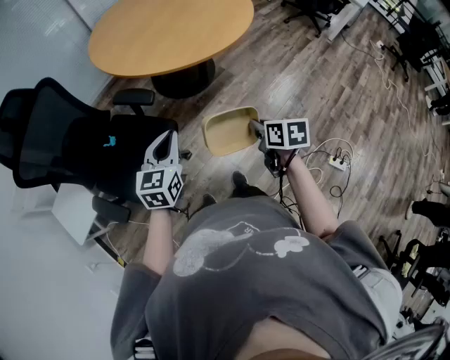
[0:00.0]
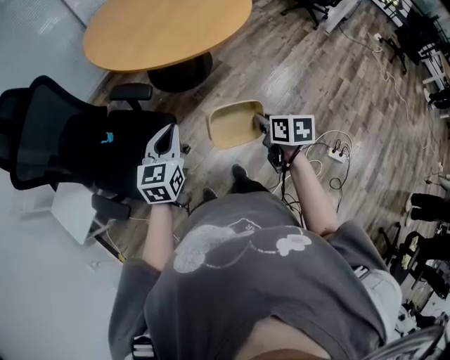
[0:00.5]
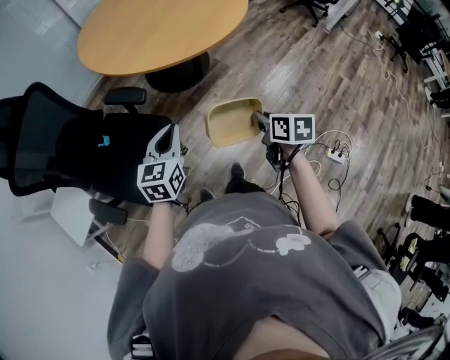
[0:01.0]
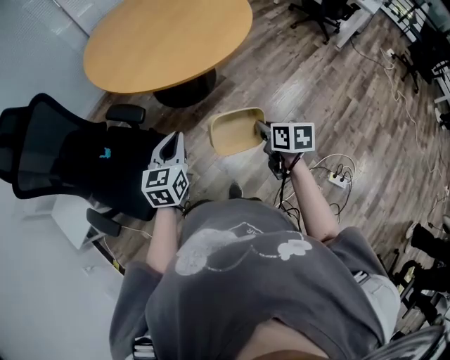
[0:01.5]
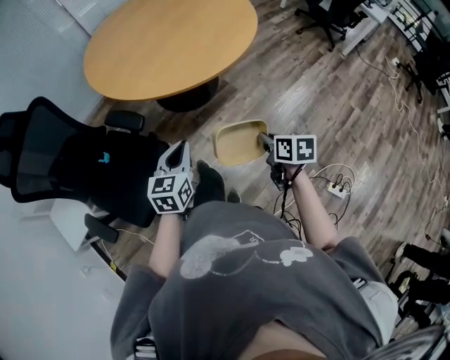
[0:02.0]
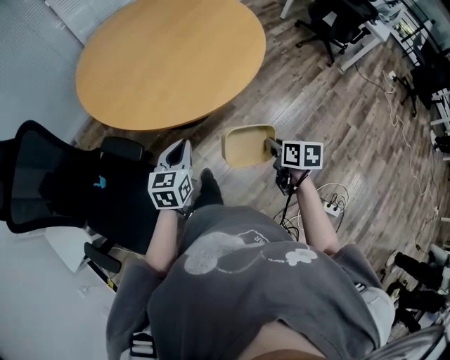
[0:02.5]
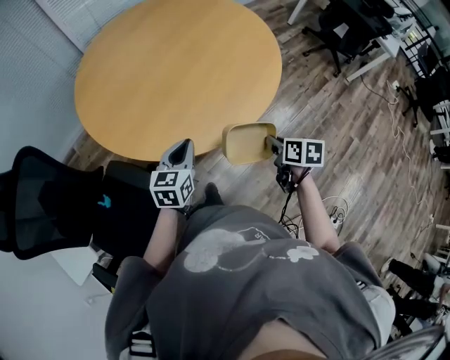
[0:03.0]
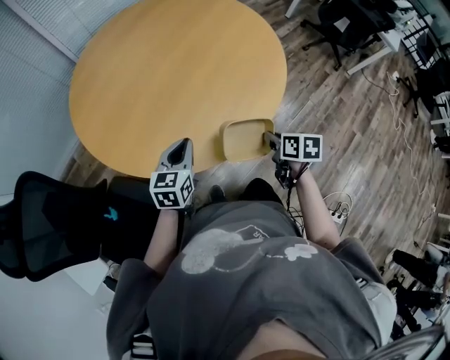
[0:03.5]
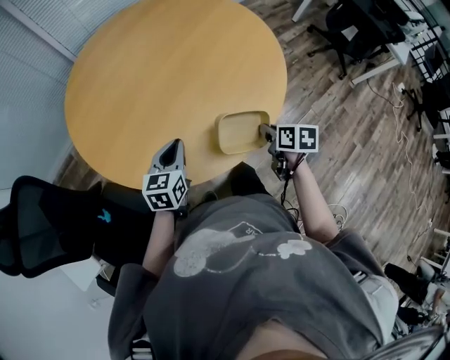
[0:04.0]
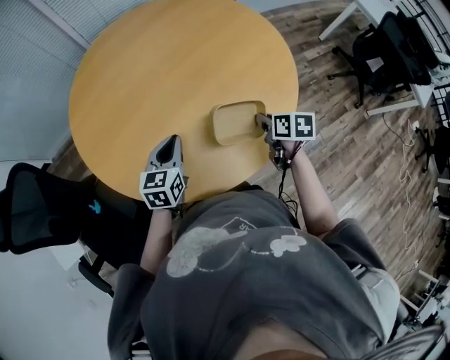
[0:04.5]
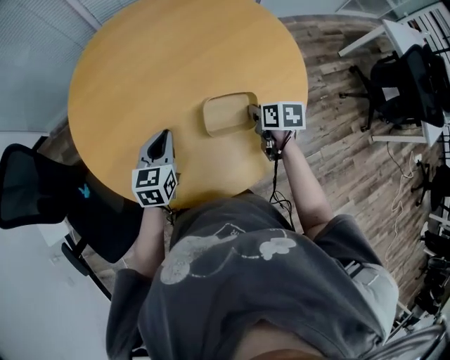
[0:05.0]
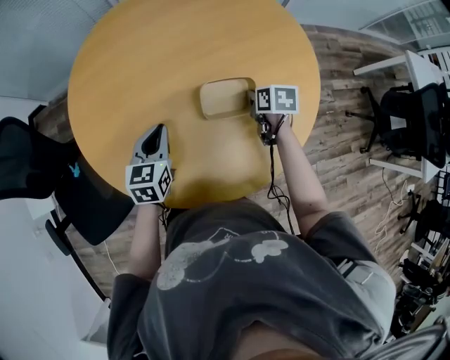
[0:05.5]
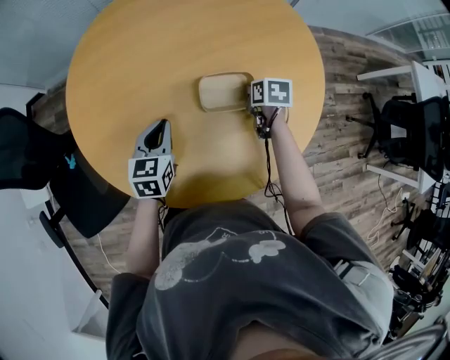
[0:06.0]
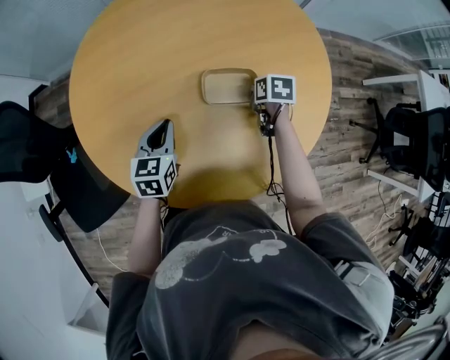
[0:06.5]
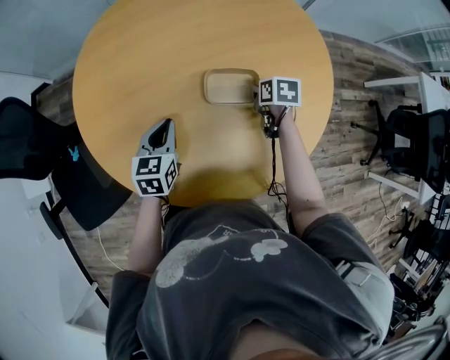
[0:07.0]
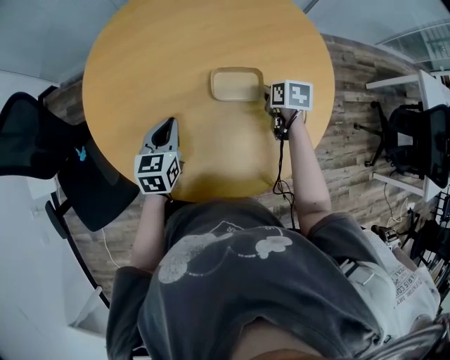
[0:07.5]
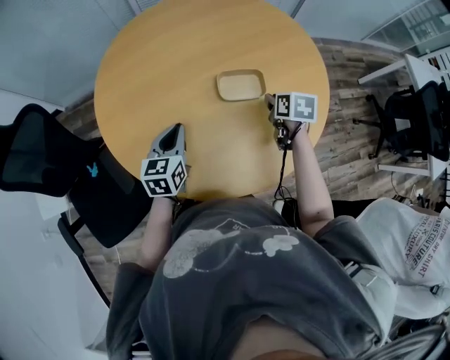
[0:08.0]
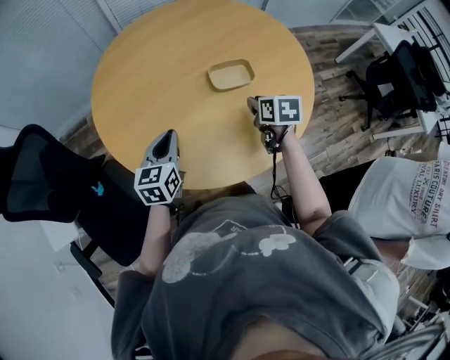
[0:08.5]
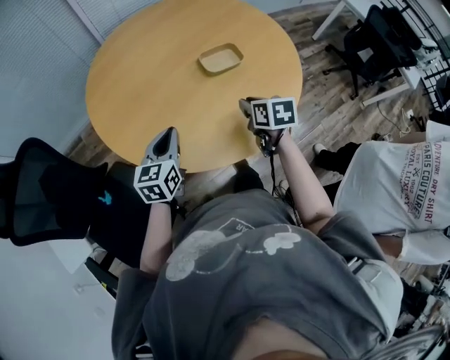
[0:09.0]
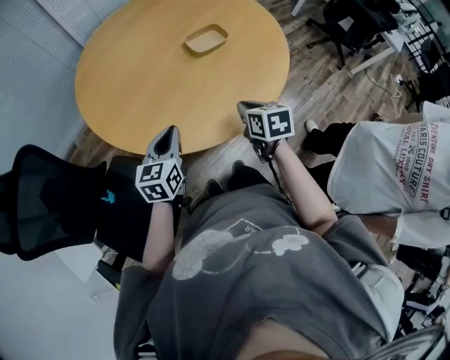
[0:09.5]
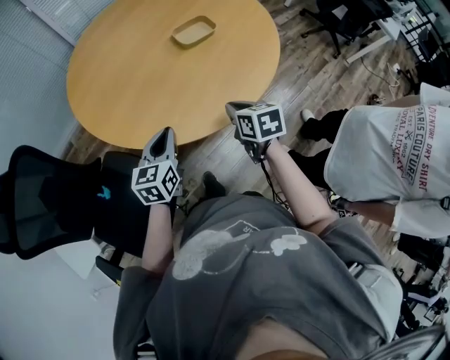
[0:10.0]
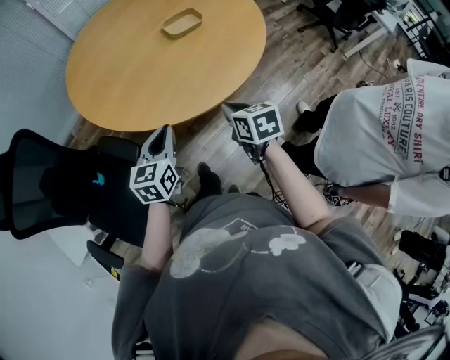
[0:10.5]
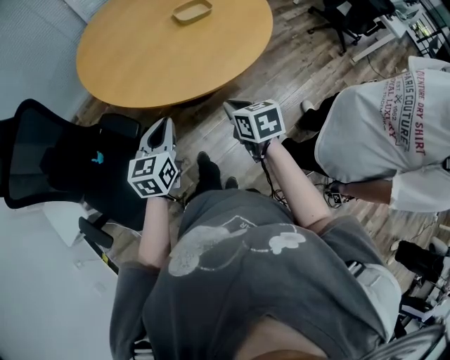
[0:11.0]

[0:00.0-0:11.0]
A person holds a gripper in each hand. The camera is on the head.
0:00.0 to 0:02.0: The two grippers go some 20 cm to the right and forward.
0:02.0 to 0:03.5: Both grippers travel together forward, some 40 cm.
0:03.5 to 0:05.5: The right gripper shifts by some 40 cm, and turns by approximately 40 degrees. Meanwhile the left gripper changes place by approximately 25 cm, and swivels about 40 degrees.
0:05.5 to 0:07.5: The right gripper opens.
0:07.5 to 0:09.0: The right gripper is displaced backward and to the left by roughly 30 cm; the left gripper heads backward, to the left and upward, covering approximately 20 cm, and rotates some 20 degrees.
0:09.0 to 0:11.0: Both grippers move backward, some 30 cm.

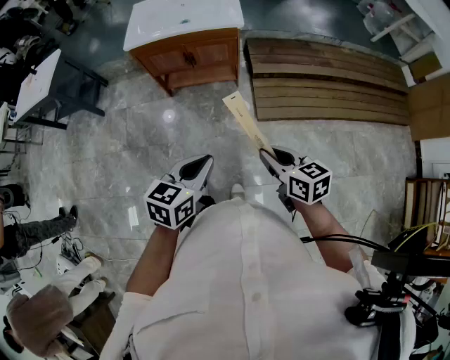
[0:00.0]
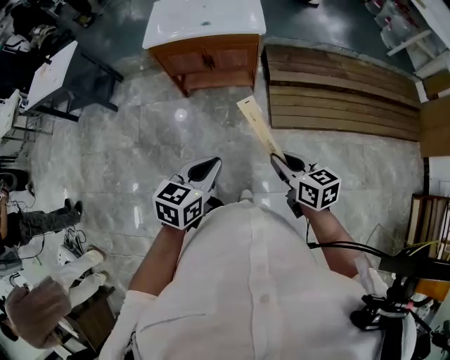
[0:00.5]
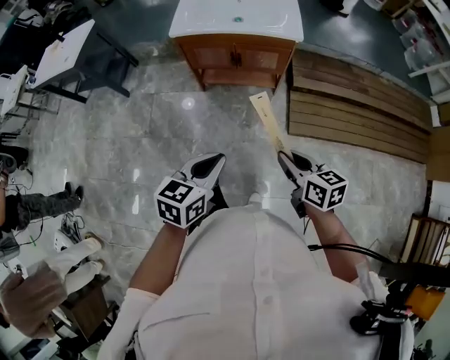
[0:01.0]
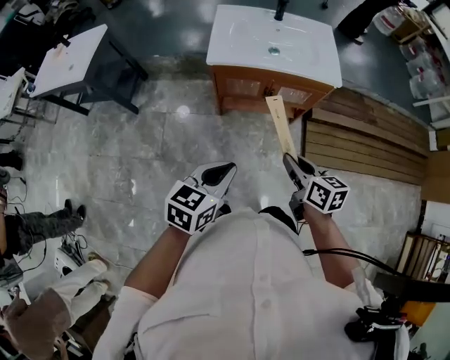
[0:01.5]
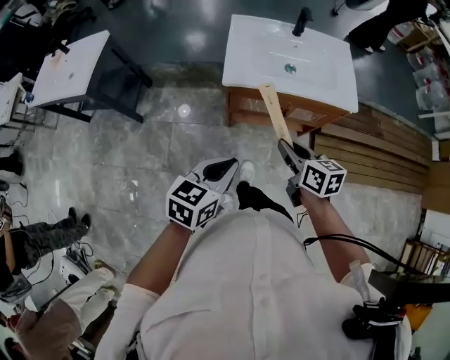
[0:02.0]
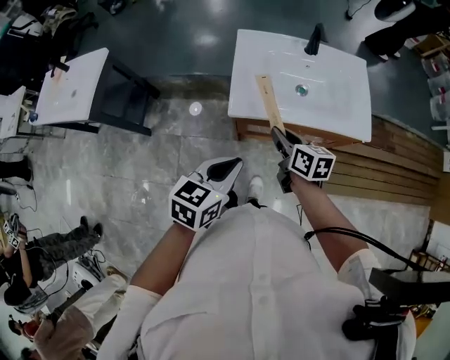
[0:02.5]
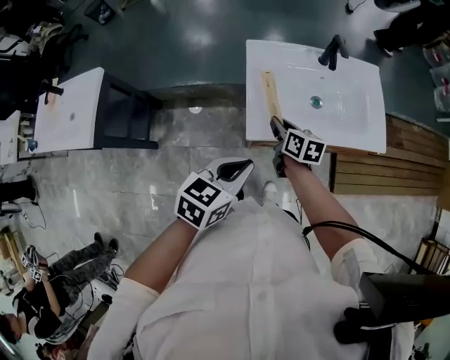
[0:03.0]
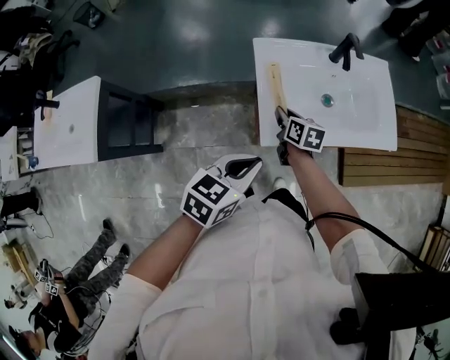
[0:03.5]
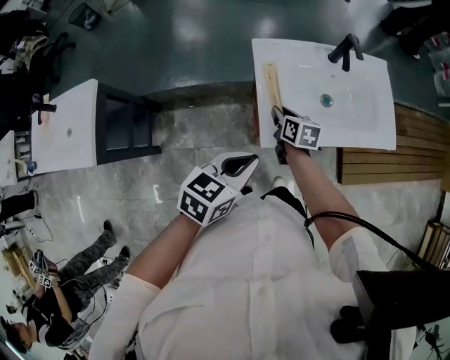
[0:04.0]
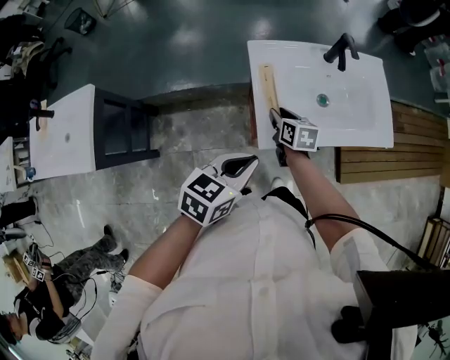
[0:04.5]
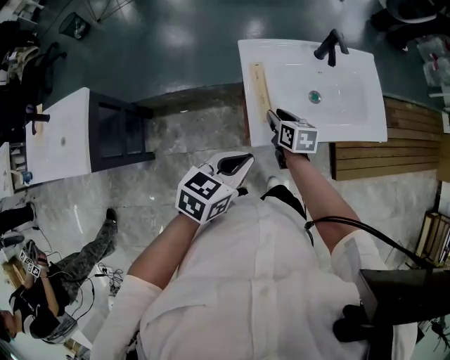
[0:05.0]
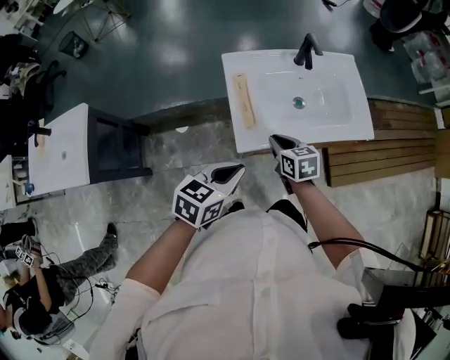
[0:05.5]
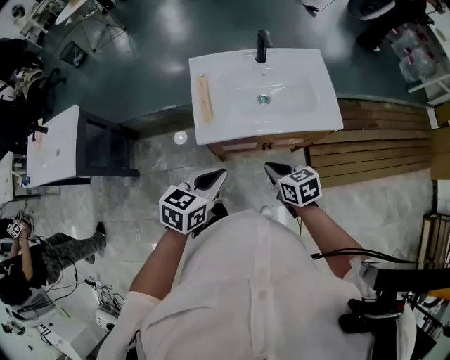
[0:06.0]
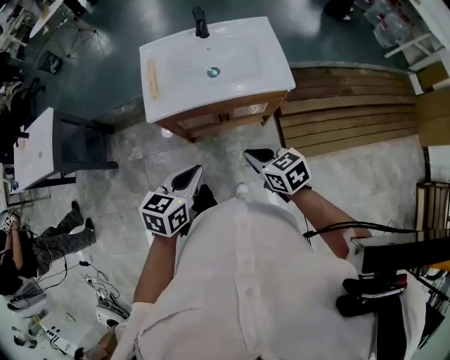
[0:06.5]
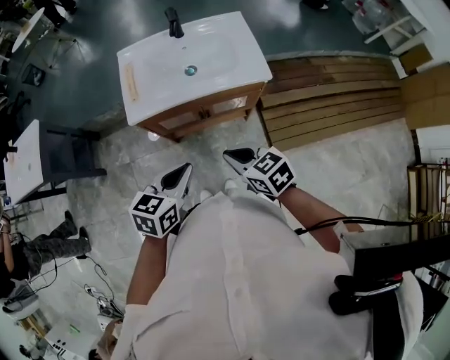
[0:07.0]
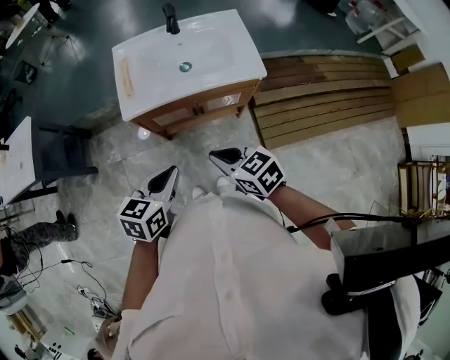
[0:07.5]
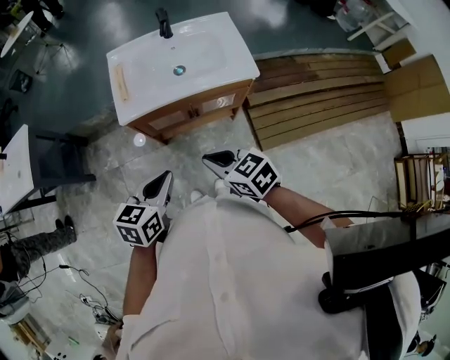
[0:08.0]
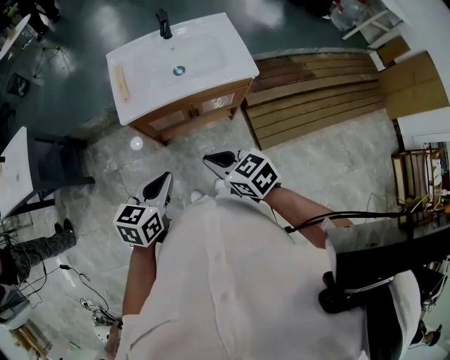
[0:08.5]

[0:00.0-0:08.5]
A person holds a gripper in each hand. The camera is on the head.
0:00.0 to 0:02.0: The pair of grippers is taken forward and to the left, roughly 50 cm.
0:02.0 to 0:04.0: The right gripper is displaced forward, to the left and downward by approximately 40 cm, and swivels roughly 20 degrees. Meanwhile the left gripper shifts some 30 cm forward and to the left.
0:04.0 to 0:06.5: Both grippers move to the right and backward, some 40 cm. The right gripper rotates roughly 30 degrees.
0:06.5 to 0:08.5: The right gripper moves to the left, upward and backward, roughly 10 cm. The left gripper changes place by some 5 cm.

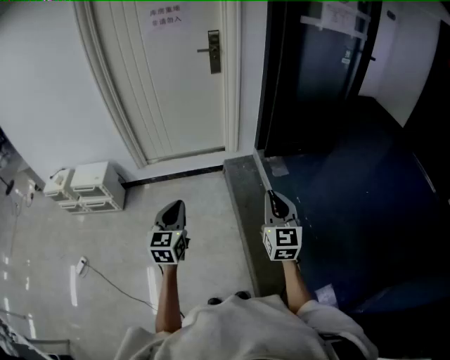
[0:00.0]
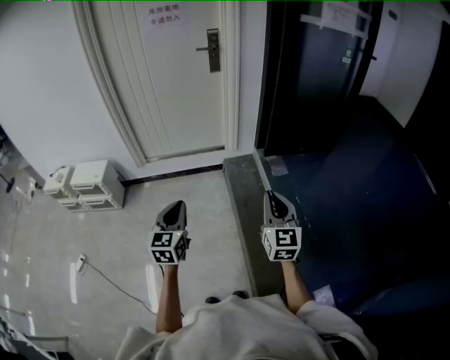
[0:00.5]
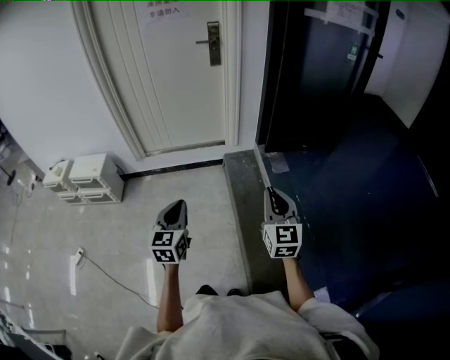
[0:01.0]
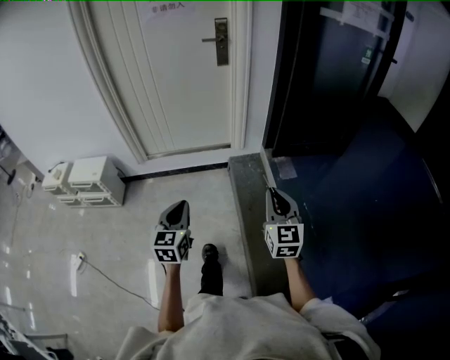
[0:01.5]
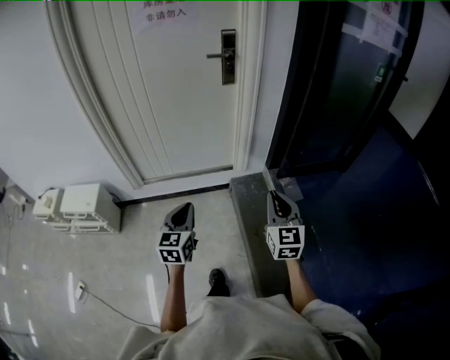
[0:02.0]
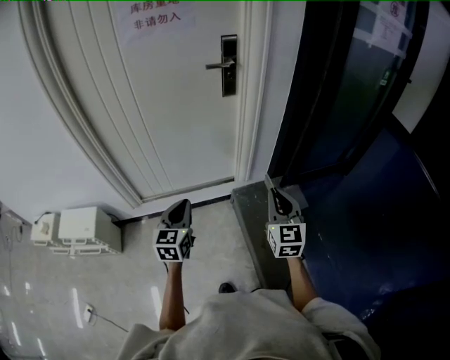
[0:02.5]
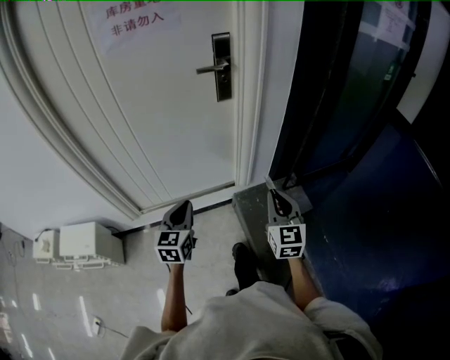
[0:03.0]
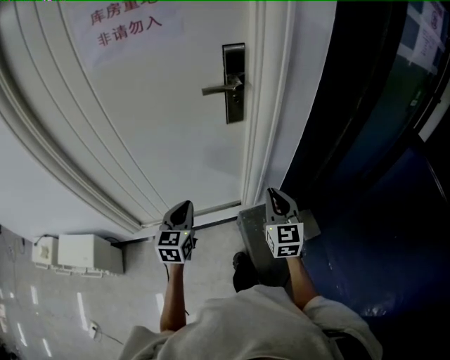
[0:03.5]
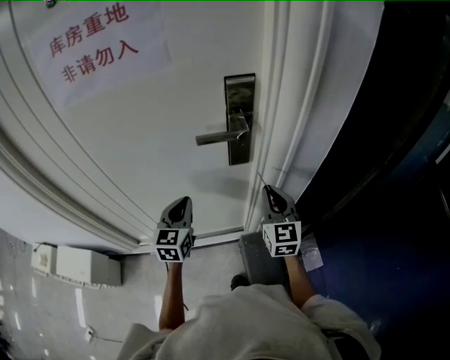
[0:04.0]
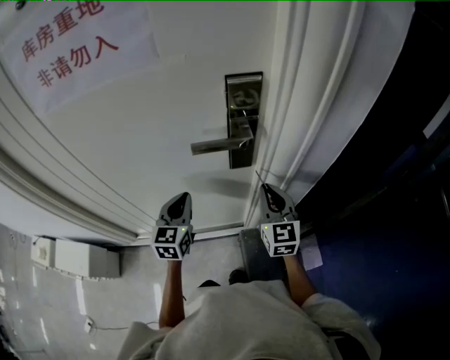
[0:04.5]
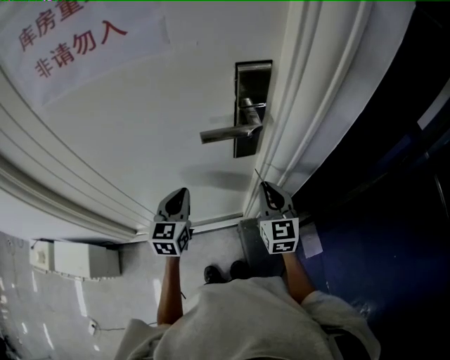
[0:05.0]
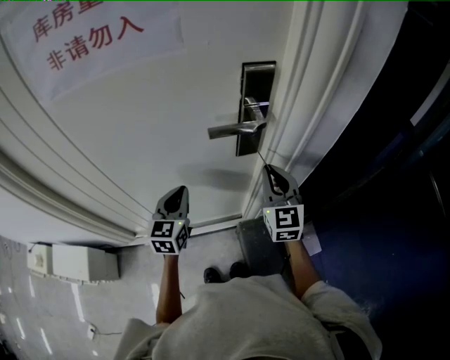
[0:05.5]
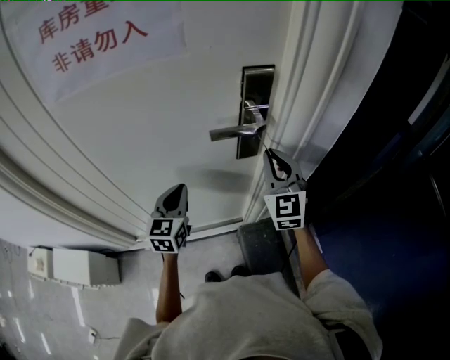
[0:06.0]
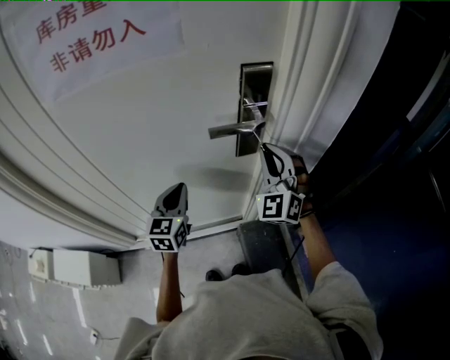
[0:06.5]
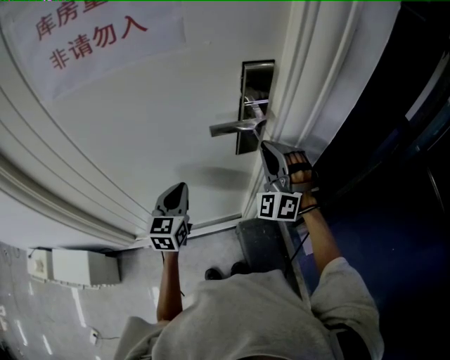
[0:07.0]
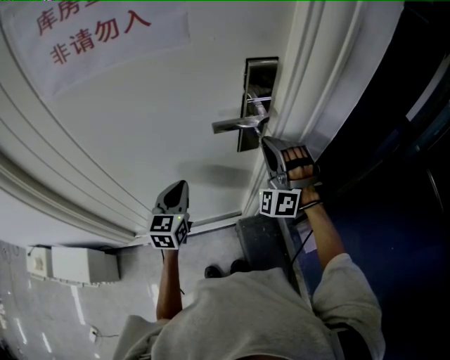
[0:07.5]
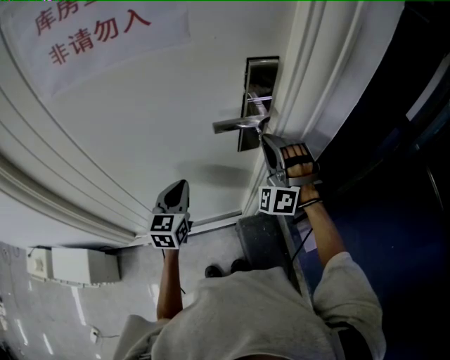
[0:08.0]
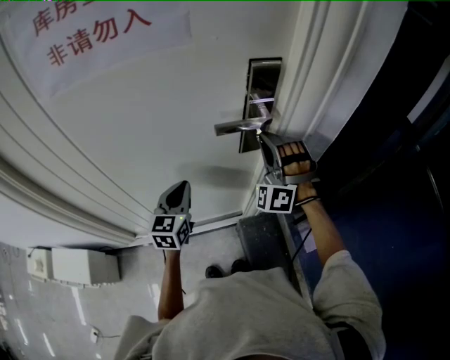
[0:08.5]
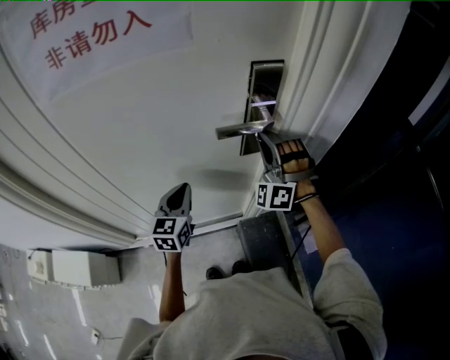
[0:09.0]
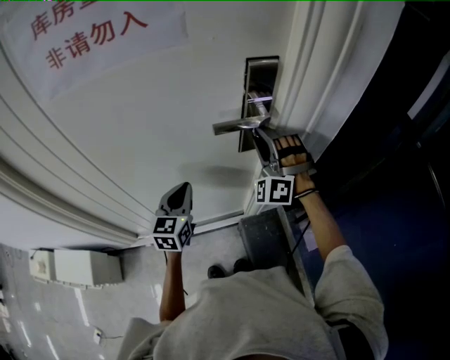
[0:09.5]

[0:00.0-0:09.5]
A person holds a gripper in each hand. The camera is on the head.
0:00.0 to 0:02.0: Both grippers move forward, roughly 35 cm.
0:02.0 to 0:04.0: Both grippers are carried forward, approximately 60 cm.
0:04.0 to 0:05.5: The right gripper ends up approximately 5 cm from where it was.
0:05.5 to 0:07.5: The right gripper moves roughly 5 cm, and rotates around the line of its fingers by about 70 degrees, counterclockwise from behind.
0:07.5 to 0:09.5: The grippers stay close to where they were, moving slightly.
